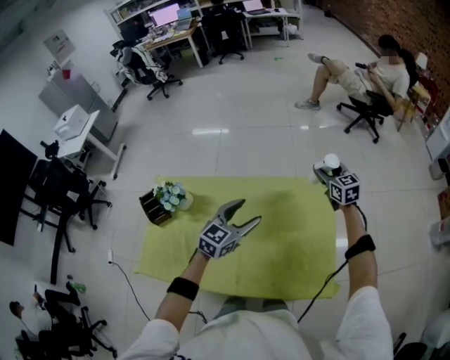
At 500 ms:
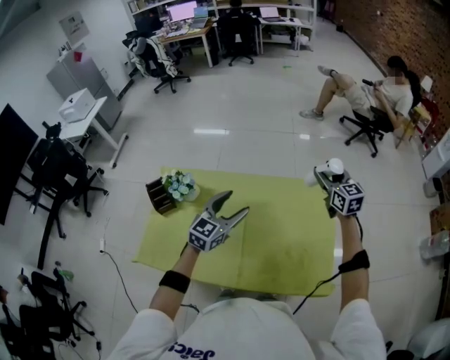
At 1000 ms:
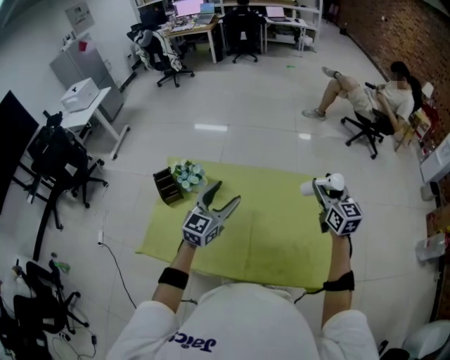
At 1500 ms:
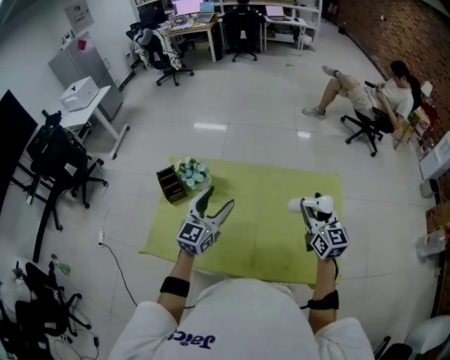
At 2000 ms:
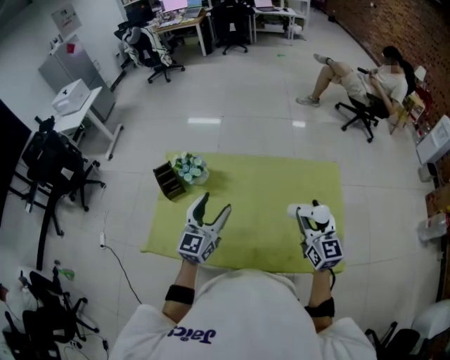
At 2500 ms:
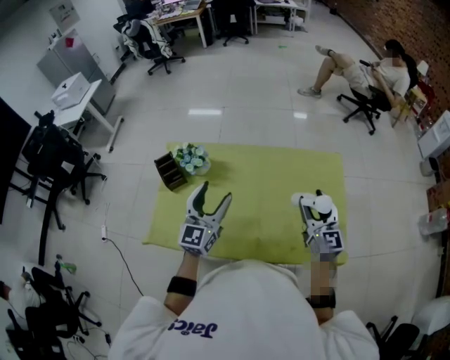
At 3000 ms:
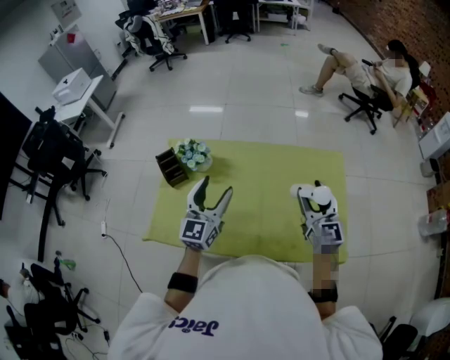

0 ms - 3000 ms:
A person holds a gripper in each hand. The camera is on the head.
0 ms - 1500 ms: The left gripper goes roughly 20 cm to the left and backward, and swivels some 30 degrees. Meanwhile the right gripper heads backward and to the left, covering some 30 cm.
1500 ms - 3000 ms: The right gripper ends up approximately 5 cm from where it was.

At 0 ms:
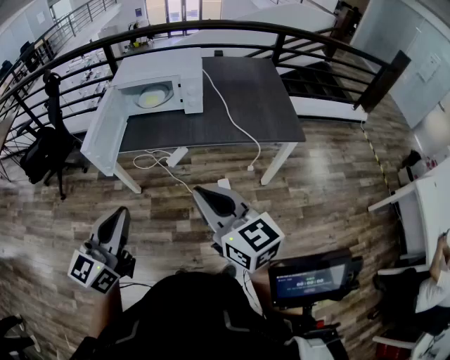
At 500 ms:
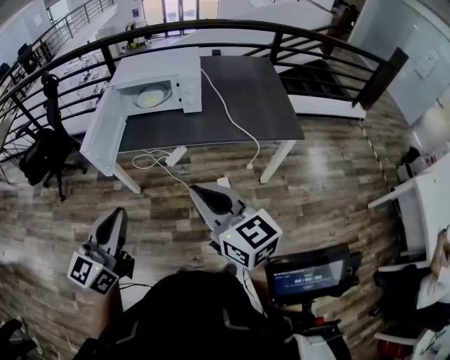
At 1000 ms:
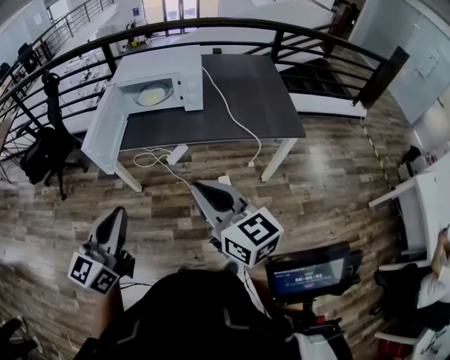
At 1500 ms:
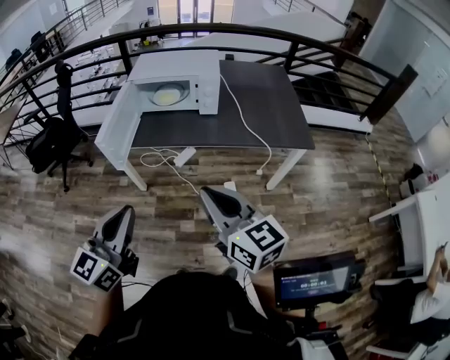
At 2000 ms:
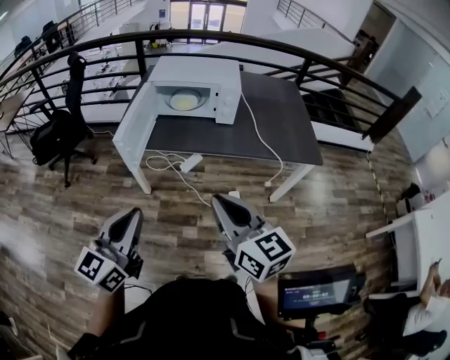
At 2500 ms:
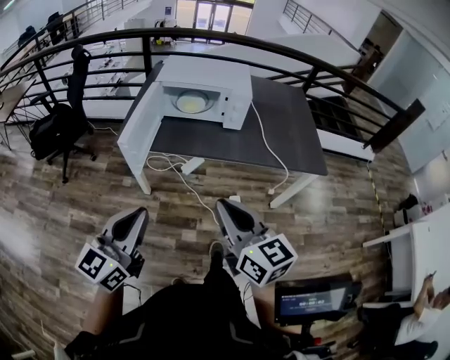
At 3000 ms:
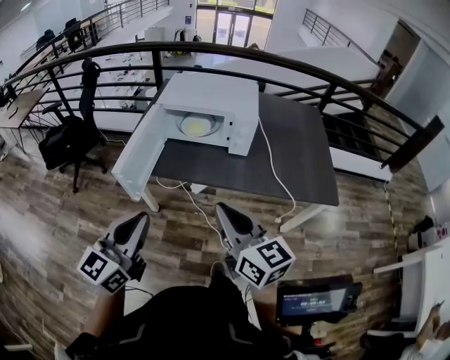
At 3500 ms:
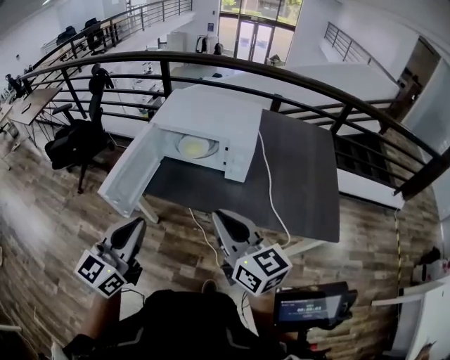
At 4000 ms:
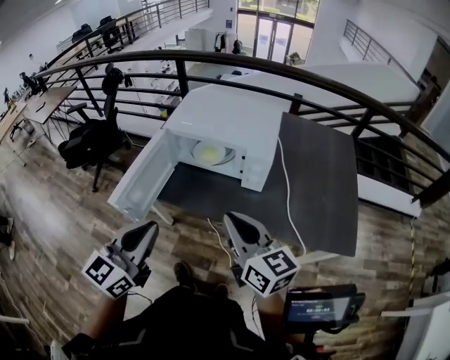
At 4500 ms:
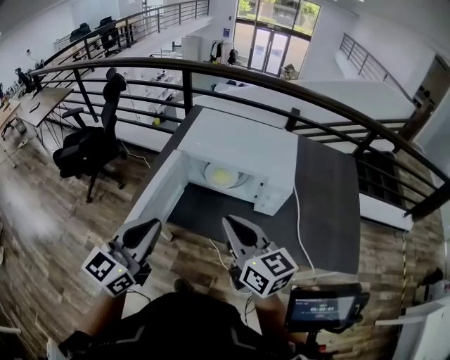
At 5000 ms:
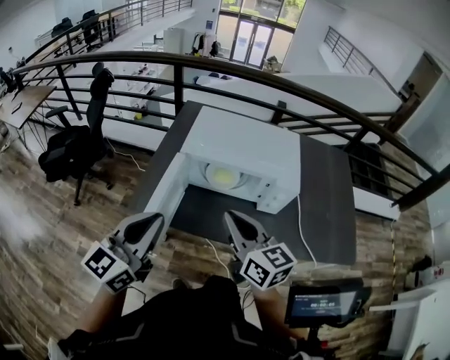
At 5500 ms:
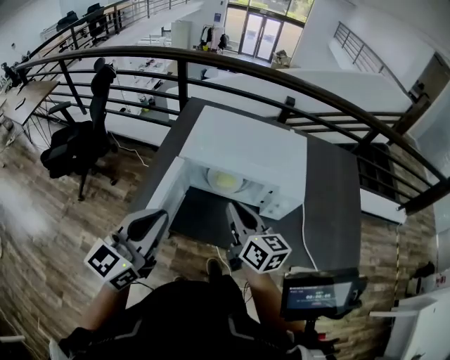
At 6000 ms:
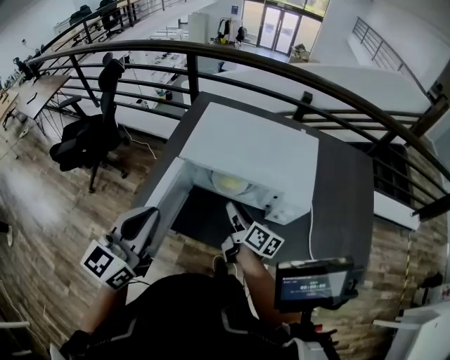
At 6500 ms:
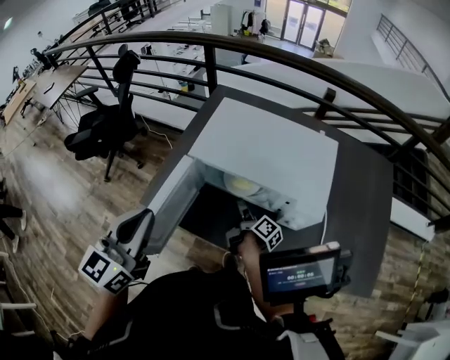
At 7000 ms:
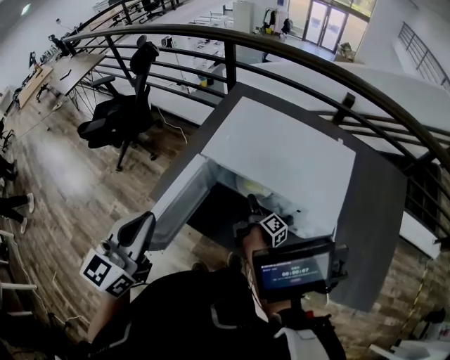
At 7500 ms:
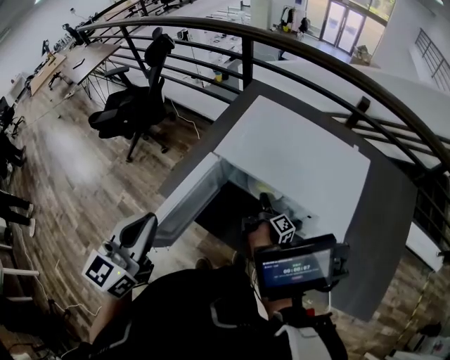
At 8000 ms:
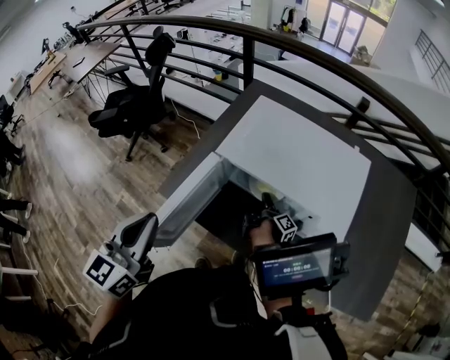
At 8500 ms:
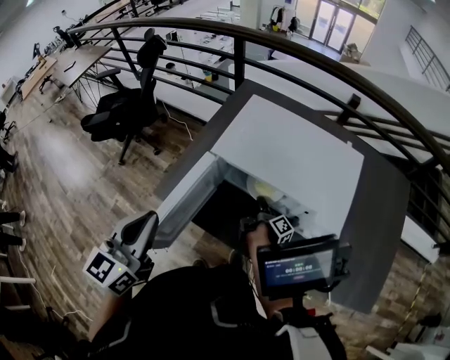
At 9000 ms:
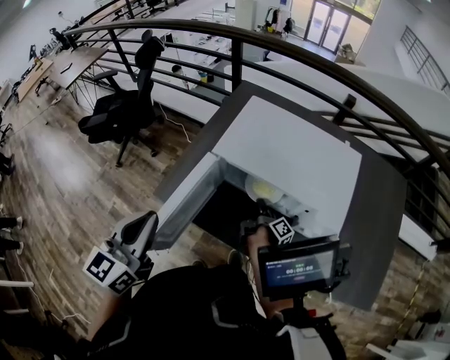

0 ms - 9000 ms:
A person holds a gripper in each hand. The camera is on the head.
0 ms - 2000 ms: The two grippers go about 10 cm to the left.
2000 ms - 4500 ms: Both grippers travel together forward, approximately 35 cm.
4500 ms - 7000 ms: The right gripper travels downward and forward by approximately 40 cm, twists about 80 degrees clockwise, seen from behind, and opens its fingers, while the left gripper travels forward by roughly 10 cm.
7000 ms - 9000 ms: The right gripper closes up.

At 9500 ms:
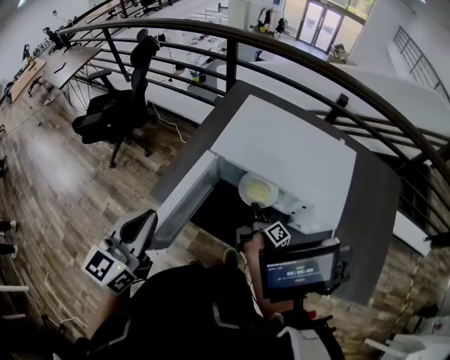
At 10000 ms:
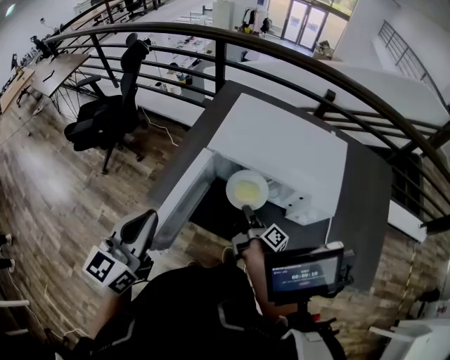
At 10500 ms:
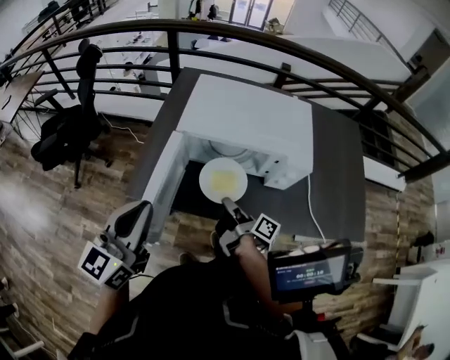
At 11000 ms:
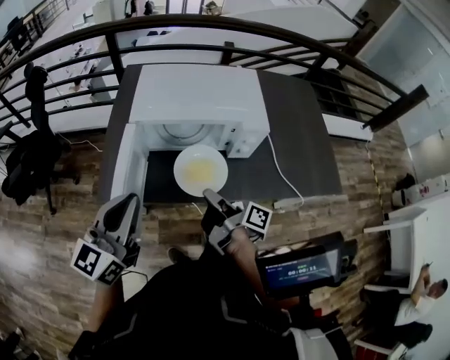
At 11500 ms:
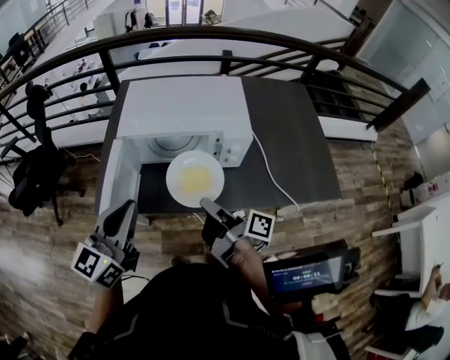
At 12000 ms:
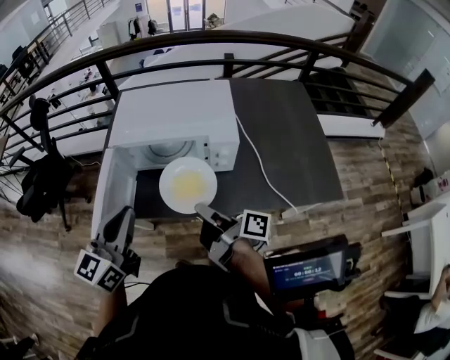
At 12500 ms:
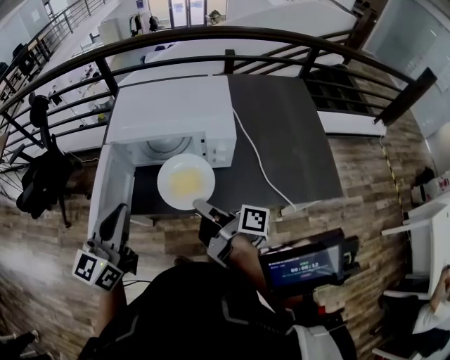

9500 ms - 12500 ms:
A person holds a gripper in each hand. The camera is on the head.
9500 ms - 11000 ms: The left gripper heads to the right, covering some 5 cm, and changes its angle by some 30 degrees. The right gripper shifts some 20 cm backward and upward.
11000 ms - 12500 ms: Both grippers move to the right, roughly 10 cm.

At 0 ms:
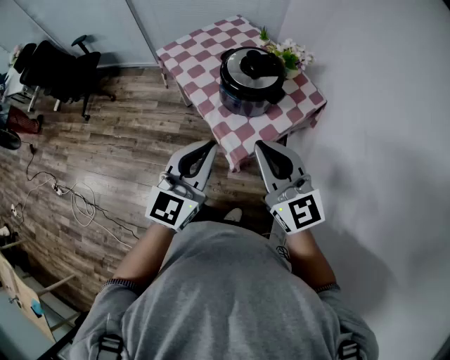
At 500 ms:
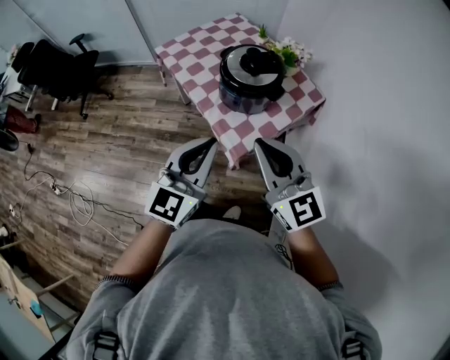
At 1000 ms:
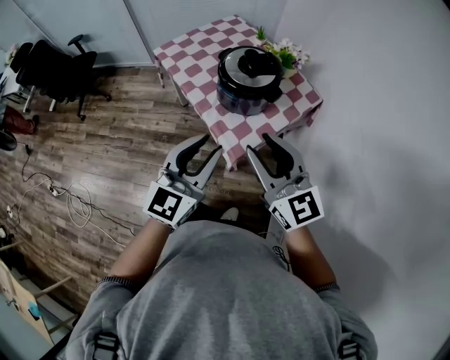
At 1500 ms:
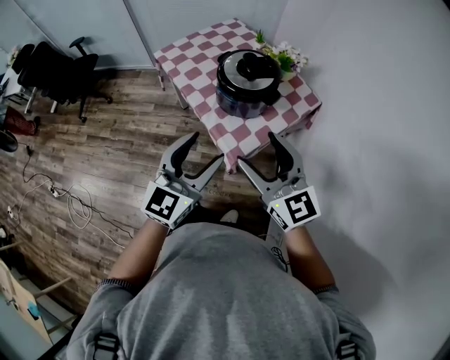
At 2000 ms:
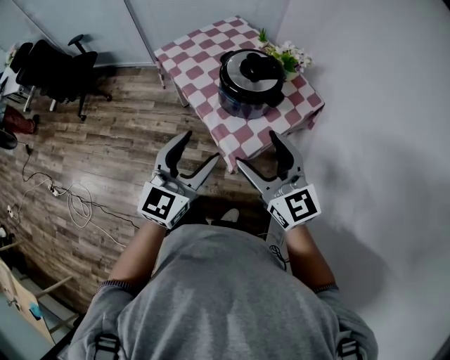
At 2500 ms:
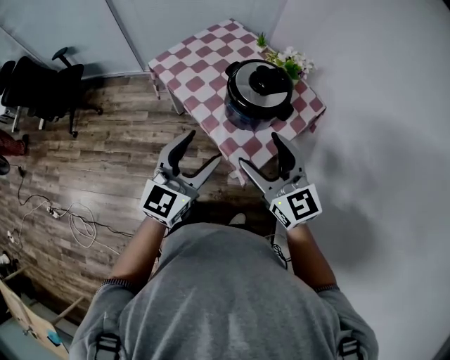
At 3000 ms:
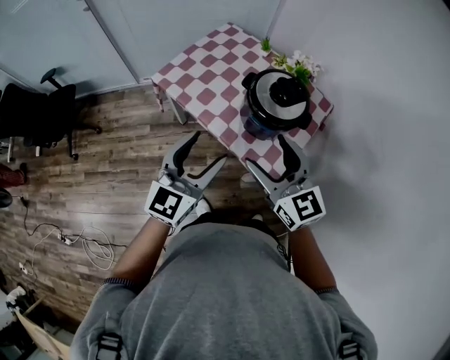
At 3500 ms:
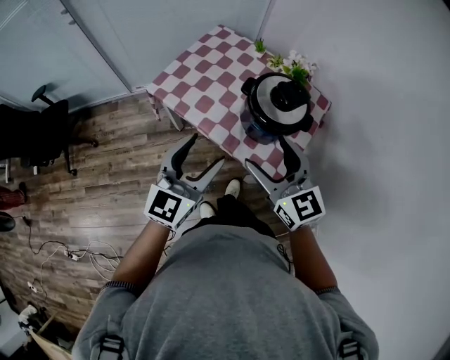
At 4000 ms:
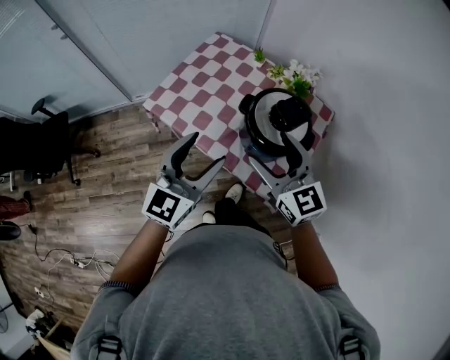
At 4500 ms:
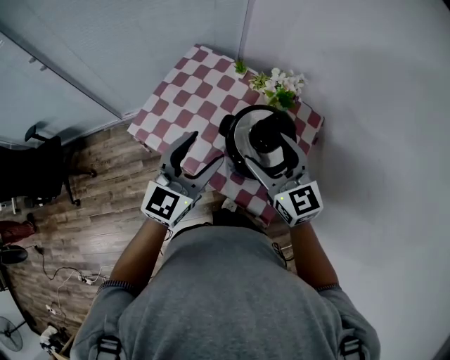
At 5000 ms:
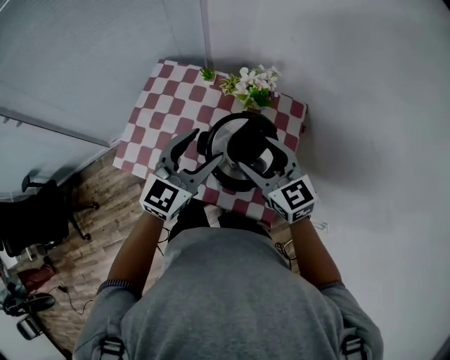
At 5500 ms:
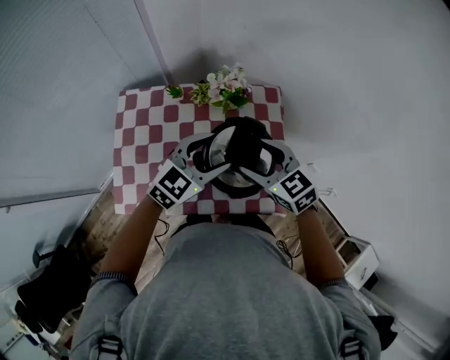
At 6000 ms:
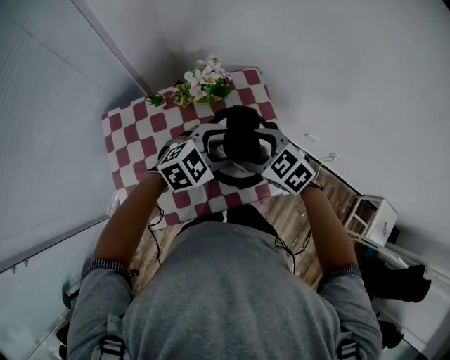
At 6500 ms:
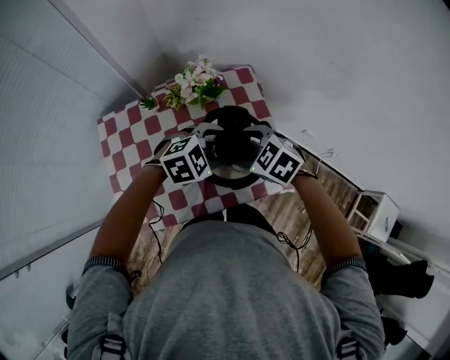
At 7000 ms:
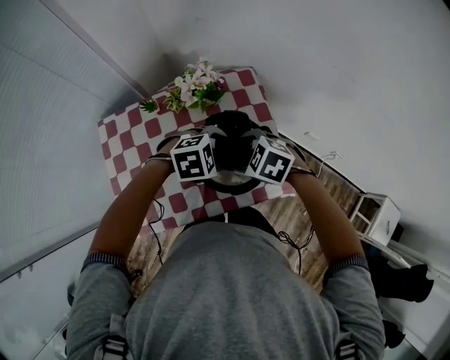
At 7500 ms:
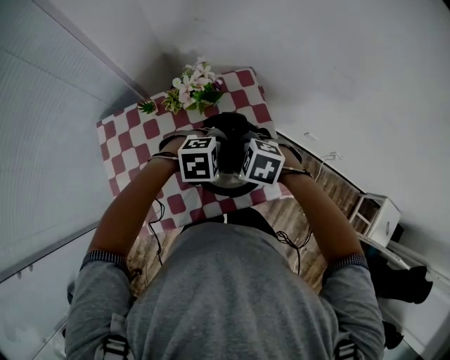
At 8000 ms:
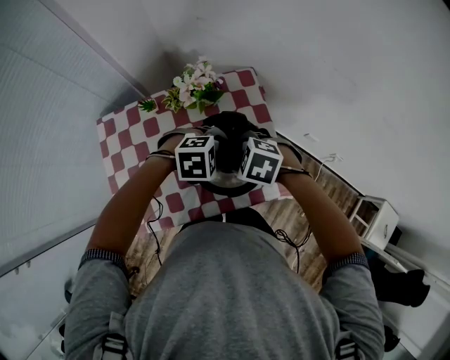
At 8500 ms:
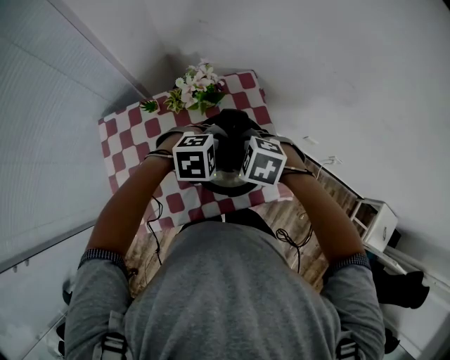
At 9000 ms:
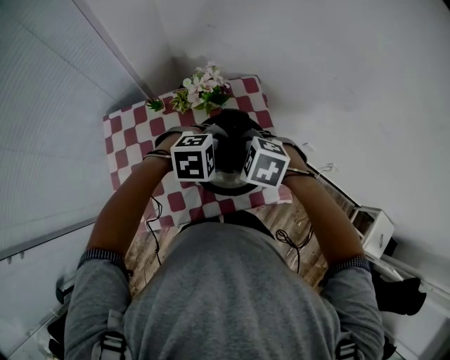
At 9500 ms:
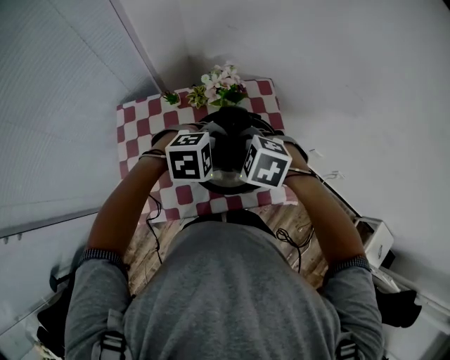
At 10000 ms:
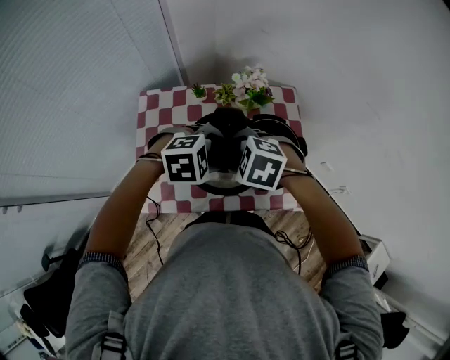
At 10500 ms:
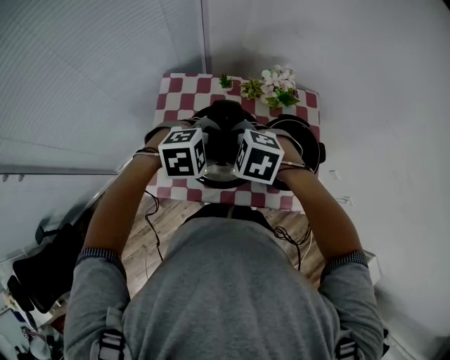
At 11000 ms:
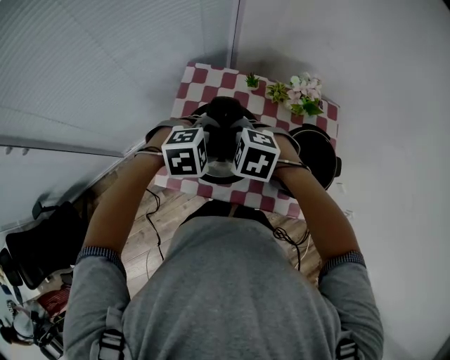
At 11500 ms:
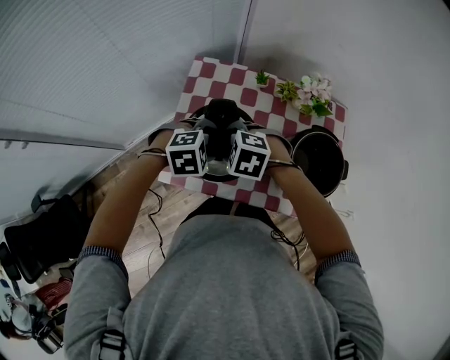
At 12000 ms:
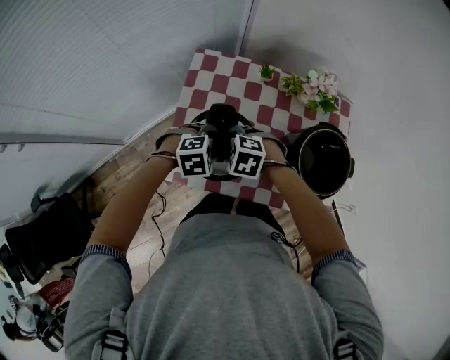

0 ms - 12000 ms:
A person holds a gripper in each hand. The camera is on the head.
0 ms - 2000 ms: The left gripper opens, while the right gripper opens.
2000 ms - 4000 ms: Both grippers travel together forward and to the left, roughly 30 cm. The right gripper turns by about 20 degrees. Meanwhile the left gripper changes its angle by some 20 degrees.
4000 ms - 6000 ms: The left gripper ends up some 30 cm from where it was, and tilts its fingers roughly 40 degrees downward. The right gripper ends up approximately 20 cm from where it was, and tips its fingers downward by about 30 degrees.
6000 ms - 8000 ms: The left gripper moves downward, about 5 cm, and turns by about 30 degrees; the right gripper swivels roughly 30 degrees.
8000 ms - 10000 ms: The right gripper moves roughly 15 cm. Meanwhile the left gripper moves roughly 15 cm.
10000 ms - 12000 ms: The right gripper moves approximately 25 cm, while the left gripper ends up roughly 25 cm from where it was, and turns by approximately 20 degrees.
